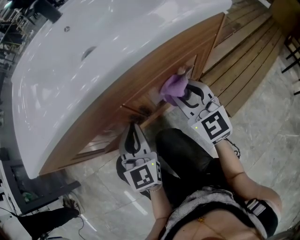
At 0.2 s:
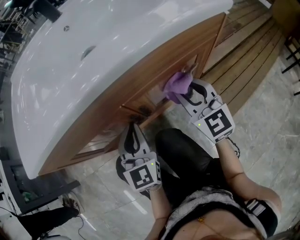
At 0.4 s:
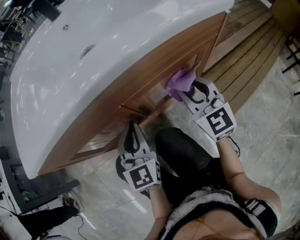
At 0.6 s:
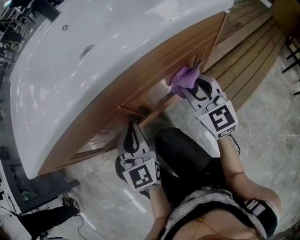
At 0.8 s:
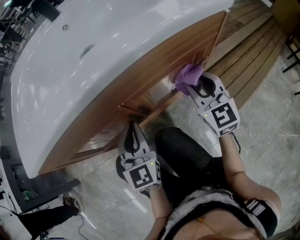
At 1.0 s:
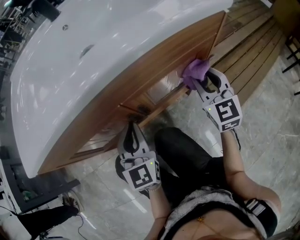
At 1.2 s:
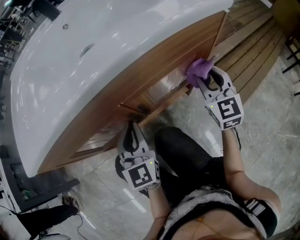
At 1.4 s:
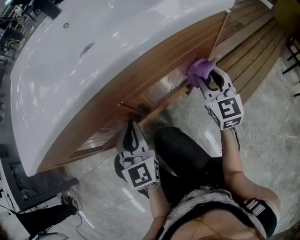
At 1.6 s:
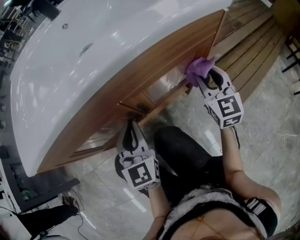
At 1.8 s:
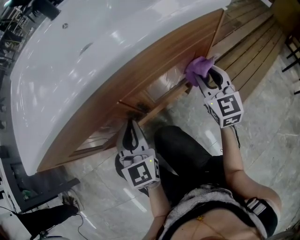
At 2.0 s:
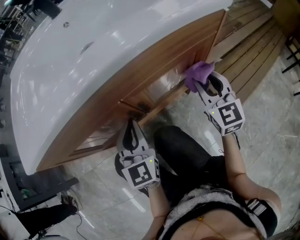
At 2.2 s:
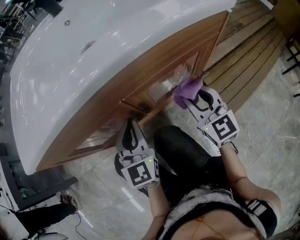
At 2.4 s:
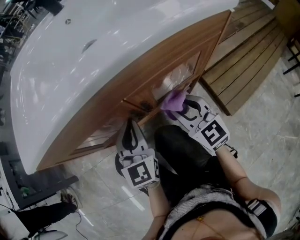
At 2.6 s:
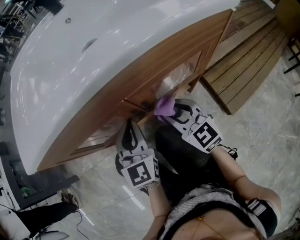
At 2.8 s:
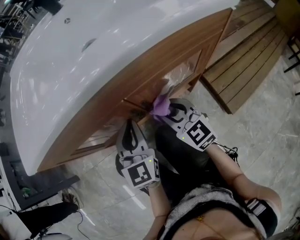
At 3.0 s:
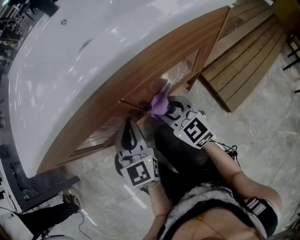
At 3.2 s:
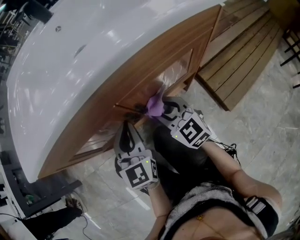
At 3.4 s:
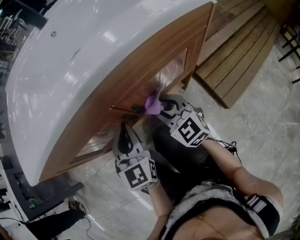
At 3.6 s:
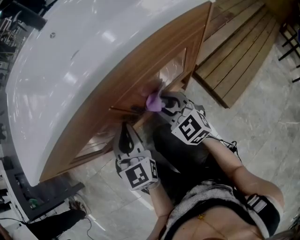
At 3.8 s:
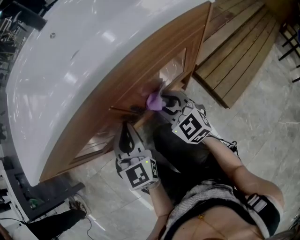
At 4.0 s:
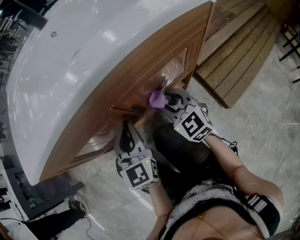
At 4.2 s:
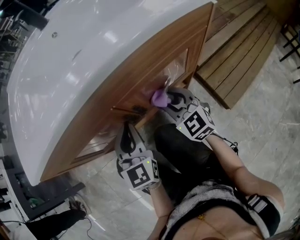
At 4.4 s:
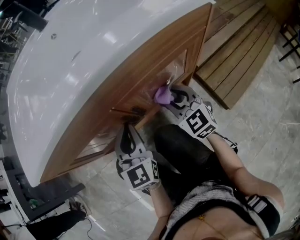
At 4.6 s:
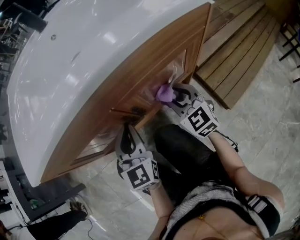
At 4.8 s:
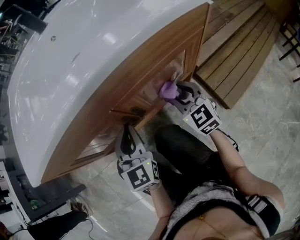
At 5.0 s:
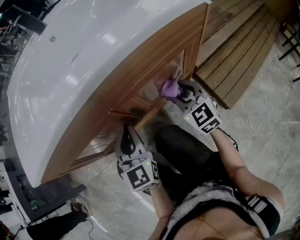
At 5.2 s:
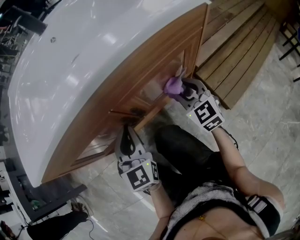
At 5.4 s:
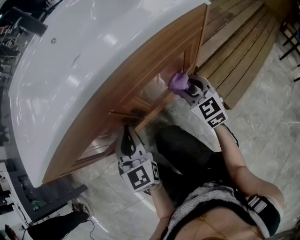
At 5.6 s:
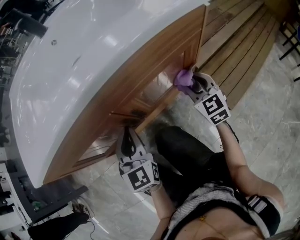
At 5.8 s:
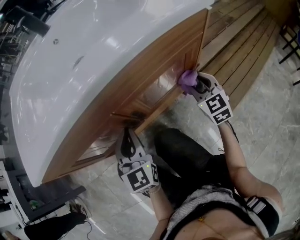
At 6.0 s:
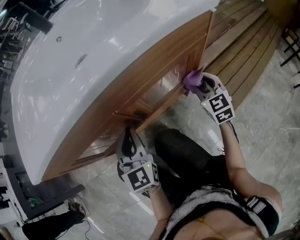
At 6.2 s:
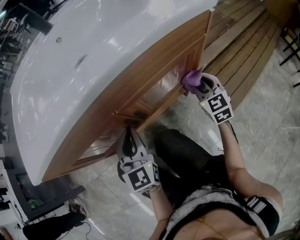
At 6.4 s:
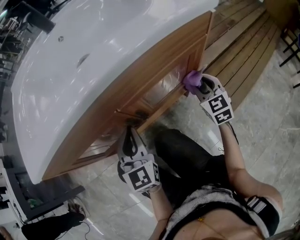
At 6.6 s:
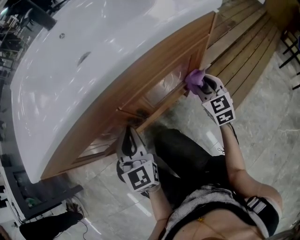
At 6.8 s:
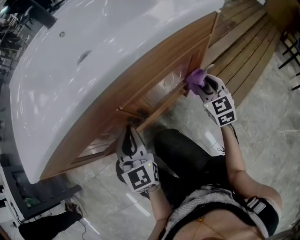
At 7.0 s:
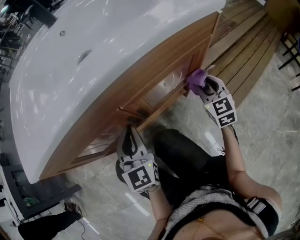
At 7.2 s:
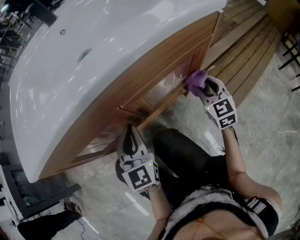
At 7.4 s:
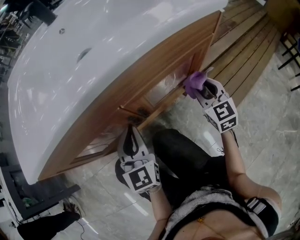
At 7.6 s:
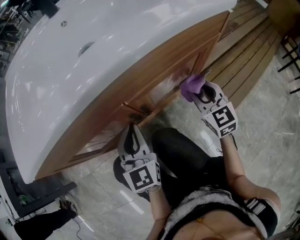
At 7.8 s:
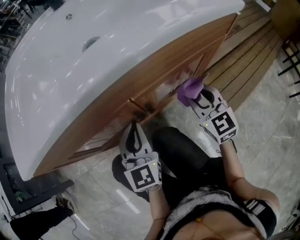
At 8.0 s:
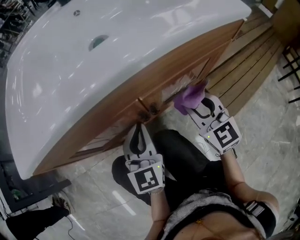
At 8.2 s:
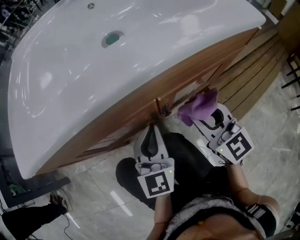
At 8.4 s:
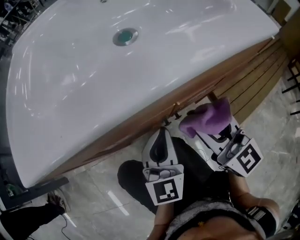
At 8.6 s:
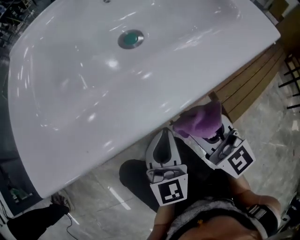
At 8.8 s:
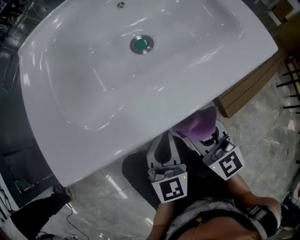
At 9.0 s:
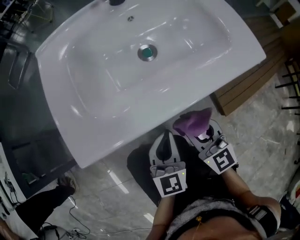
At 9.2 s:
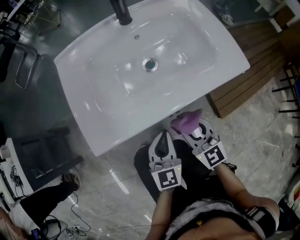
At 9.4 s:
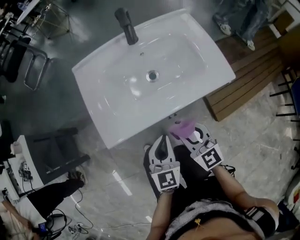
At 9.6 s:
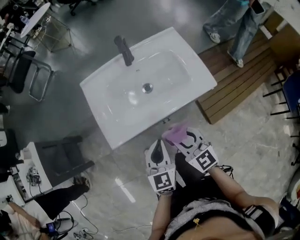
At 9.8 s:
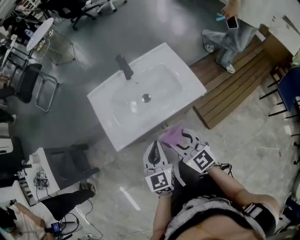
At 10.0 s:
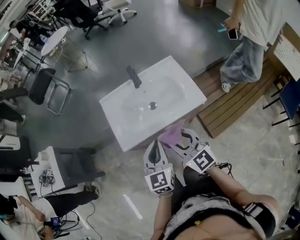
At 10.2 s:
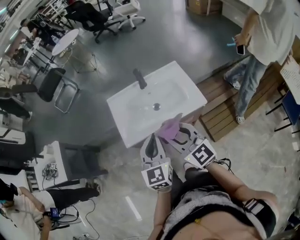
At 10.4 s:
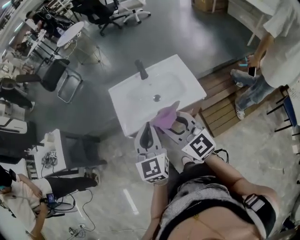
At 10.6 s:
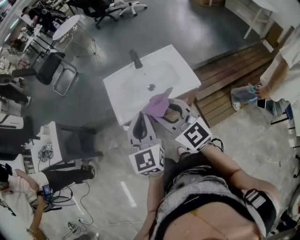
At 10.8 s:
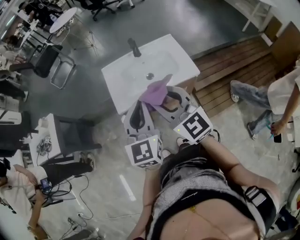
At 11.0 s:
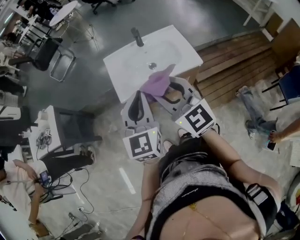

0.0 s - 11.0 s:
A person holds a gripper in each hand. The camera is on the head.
0.0 s - 1.6 s: The right gripper shifts some 10 cm to the right.
1.6 s - 3.2 s: The right gripper travels to the left by some 20 cm, and swivels about 30 degrees.
3.2 s - 4.8 s: The right gripper heads to the right, covering about 10 cm.
4.8 s - 6.2 s: The right gripper heads to the right, covering some 10 cm.
6.2 s - 7.8 s: The right gripper moves to the left, approximately 10 cm.
7.8 s - 9.4 s: The right gripper is displaced upward and to the left by approximately 30 cm. The left gripper shifts roughly 25 cm upward.
9.4 s - 11.0 s: The grippers both shift upward by some 40 cm.

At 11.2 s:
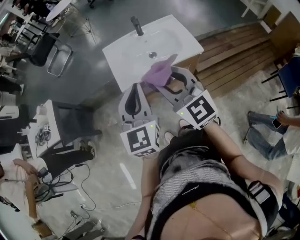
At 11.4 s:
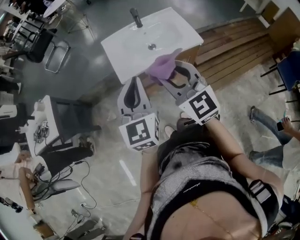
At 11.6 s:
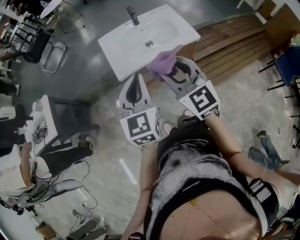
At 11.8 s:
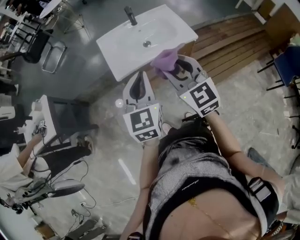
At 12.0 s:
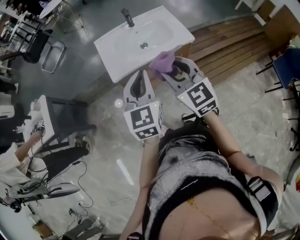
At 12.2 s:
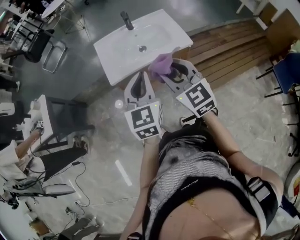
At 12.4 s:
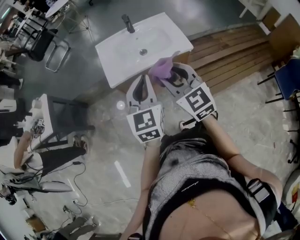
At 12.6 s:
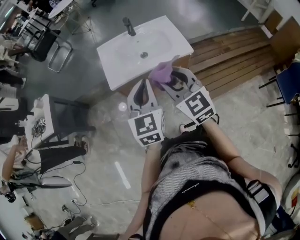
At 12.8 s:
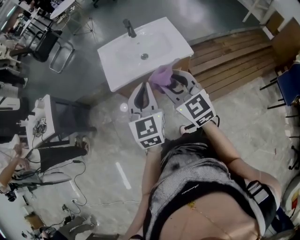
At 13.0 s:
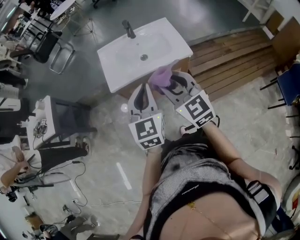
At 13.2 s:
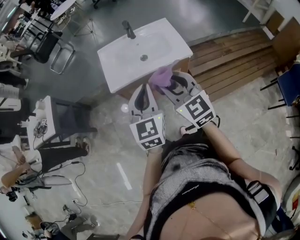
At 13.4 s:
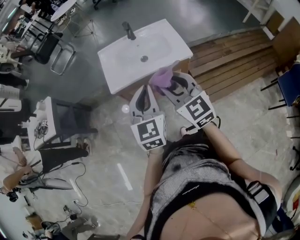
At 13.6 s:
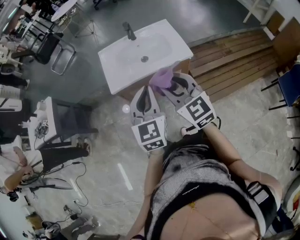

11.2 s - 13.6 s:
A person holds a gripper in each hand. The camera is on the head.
11.2 s - 12.4 s: The two grippers go some 10 cm to the right.
12.4 s - 13.6 s: The grippers make only small movements.

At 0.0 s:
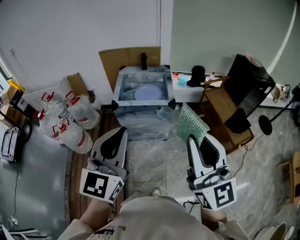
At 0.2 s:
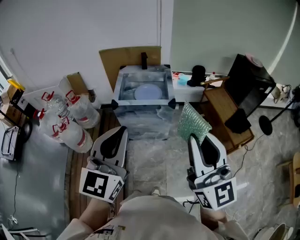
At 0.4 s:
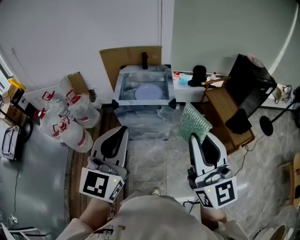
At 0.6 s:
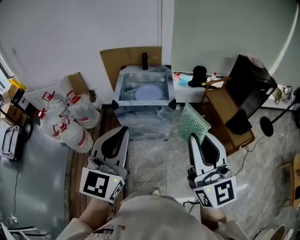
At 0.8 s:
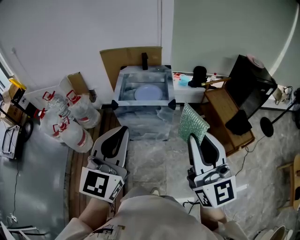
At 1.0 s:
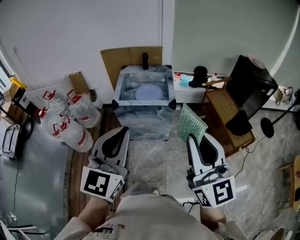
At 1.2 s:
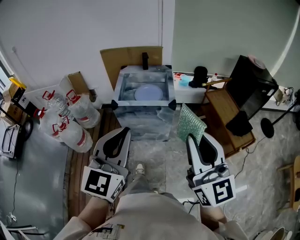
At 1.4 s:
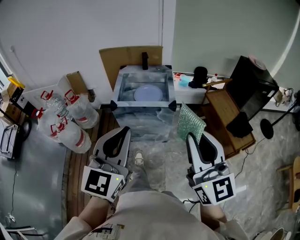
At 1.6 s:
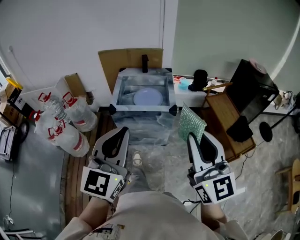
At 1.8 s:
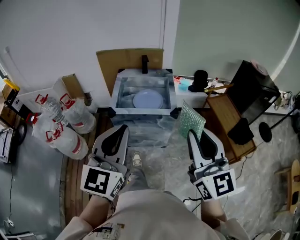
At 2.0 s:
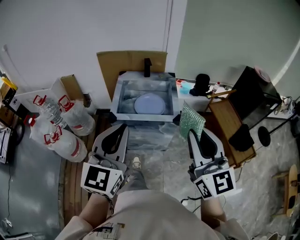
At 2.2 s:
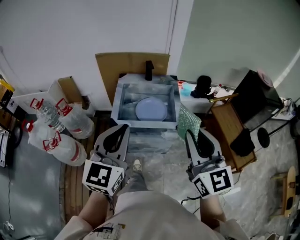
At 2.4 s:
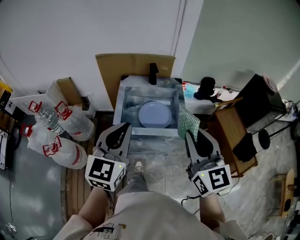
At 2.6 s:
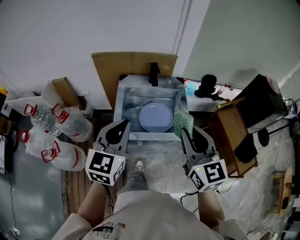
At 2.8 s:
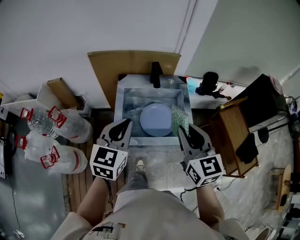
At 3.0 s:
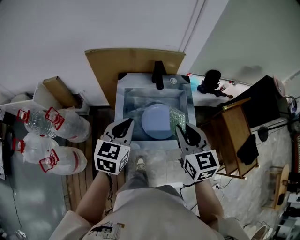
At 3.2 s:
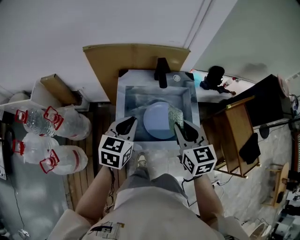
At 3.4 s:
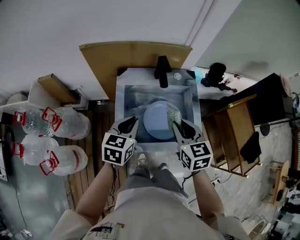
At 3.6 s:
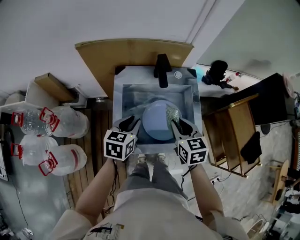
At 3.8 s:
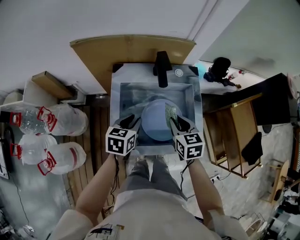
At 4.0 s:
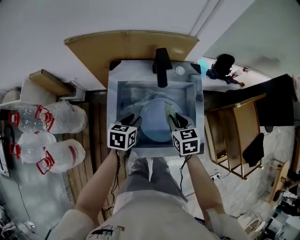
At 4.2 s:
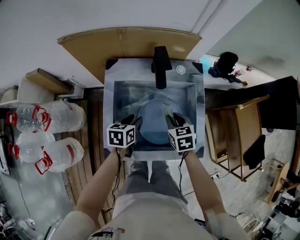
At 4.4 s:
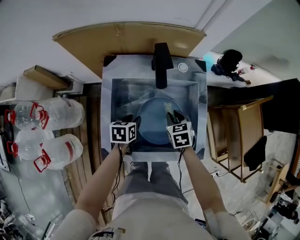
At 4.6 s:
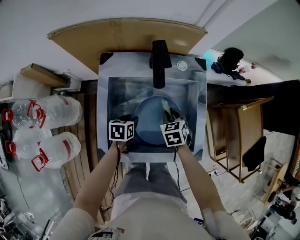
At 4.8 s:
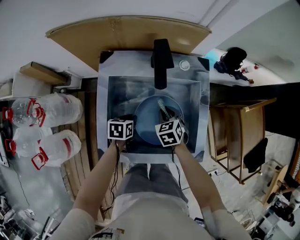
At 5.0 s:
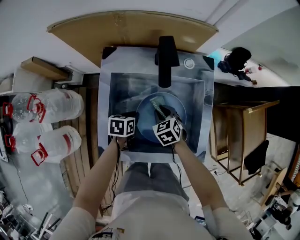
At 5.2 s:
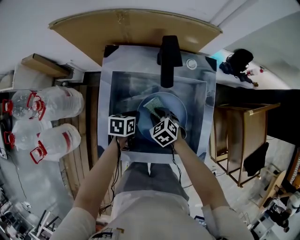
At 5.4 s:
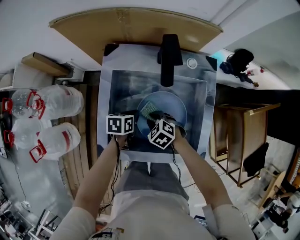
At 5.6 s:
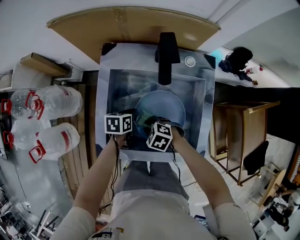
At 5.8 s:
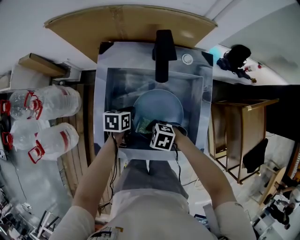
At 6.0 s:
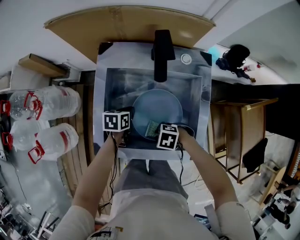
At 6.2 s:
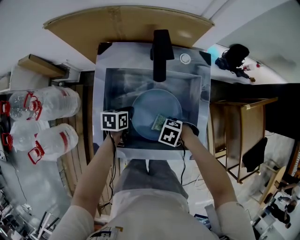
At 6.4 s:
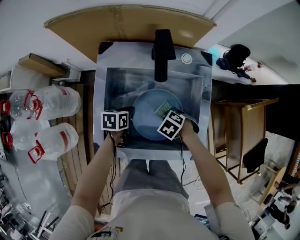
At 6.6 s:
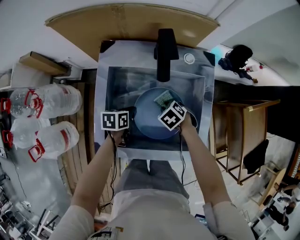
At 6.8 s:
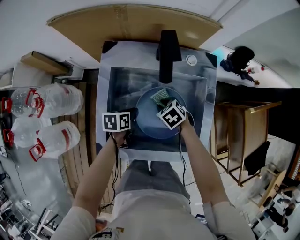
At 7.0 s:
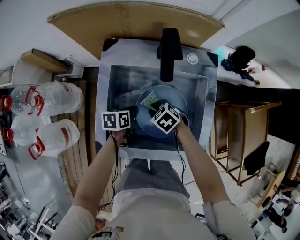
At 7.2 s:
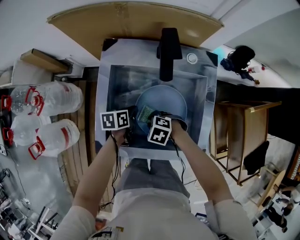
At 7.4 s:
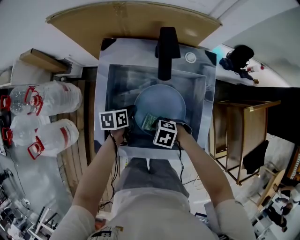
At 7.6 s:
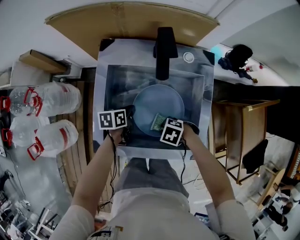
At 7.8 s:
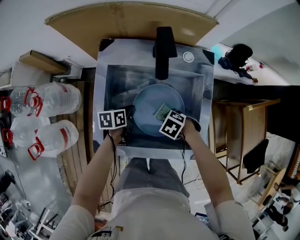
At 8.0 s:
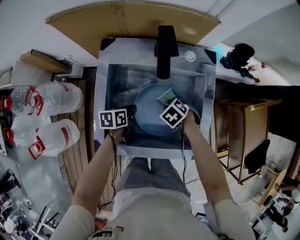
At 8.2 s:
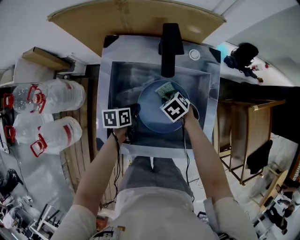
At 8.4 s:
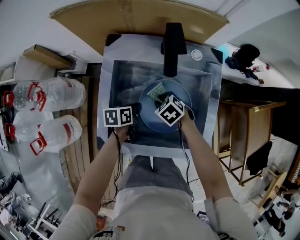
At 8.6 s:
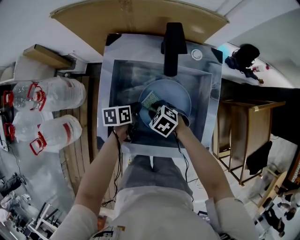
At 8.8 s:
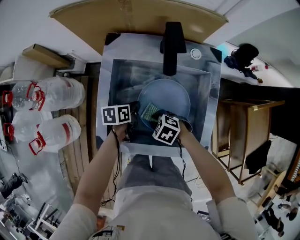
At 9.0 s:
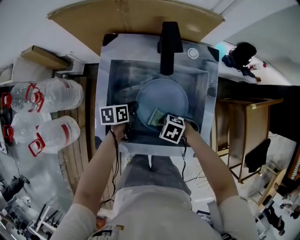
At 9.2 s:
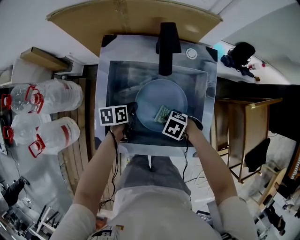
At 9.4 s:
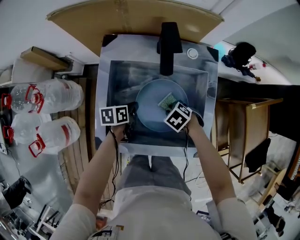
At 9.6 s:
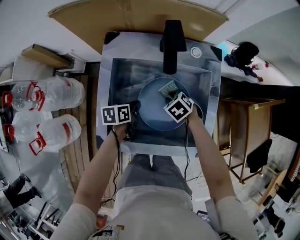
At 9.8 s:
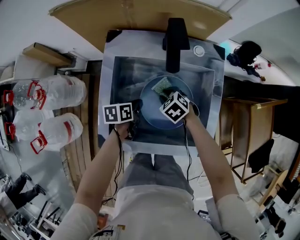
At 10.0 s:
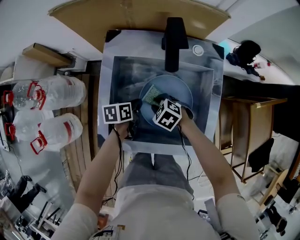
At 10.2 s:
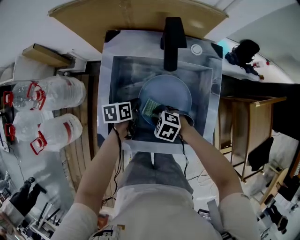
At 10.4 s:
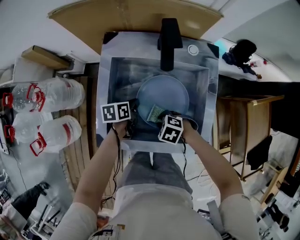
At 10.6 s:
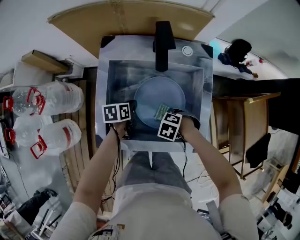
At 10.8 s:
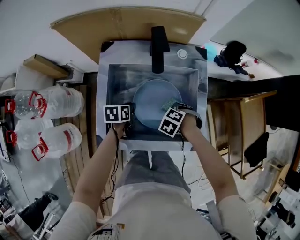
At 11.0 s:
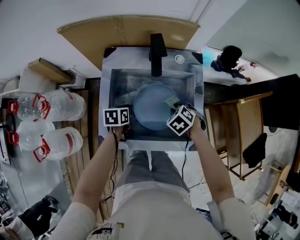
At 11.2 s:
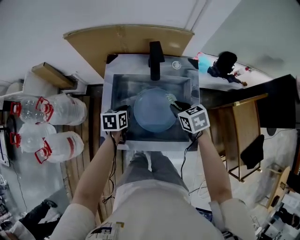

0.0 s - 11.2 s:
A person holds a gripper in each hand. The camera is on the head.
0.0 s - 1.6 s: The right gripper shifts roughly 10 cm forward and downward. Meanwhile the left gripper goes approximately 5 cm forward.
1.6 s - 3.2 s: The pair of grippers is taken forward, approximately 50 cm. Both grippers move downward, roughly 20 cm. The left gripper tips its fingers downward by approximately 30 degrees. The right gripper points its fingers some 40 degrees further downward.
3.2 s - 4.8 s: The left gripper is displaced downward by approximately 35 cm, and changes its angle by some 40 degrees; the right gripper shifts approximately 35 cm downward and forward, and points its fingers about 30 degrees further downward.
4.8 s - 6.4 s: The right gripper changes its angle by some 40 degrees.
9.6 s - 11.2 s: The left gripper moves upward, roughly 10 cm, and rotates approximately 20 degrees, while the right gripper goes approximately 15 cm upward, and changes its angle by about 30 degrees.
